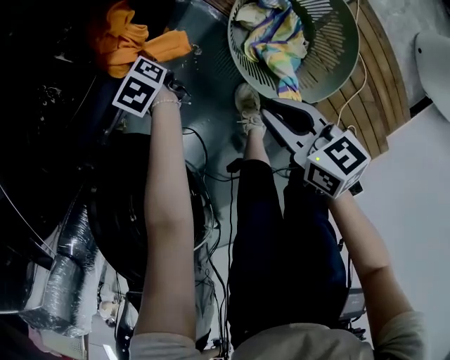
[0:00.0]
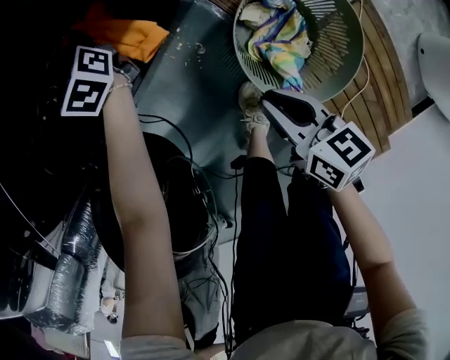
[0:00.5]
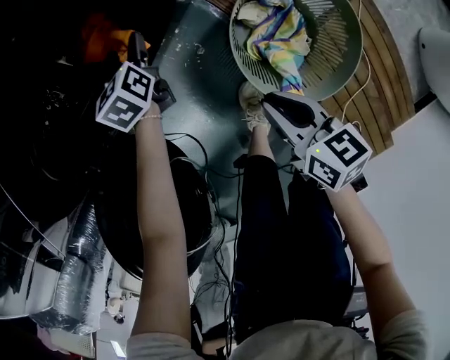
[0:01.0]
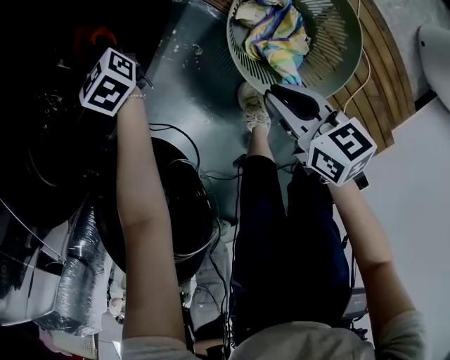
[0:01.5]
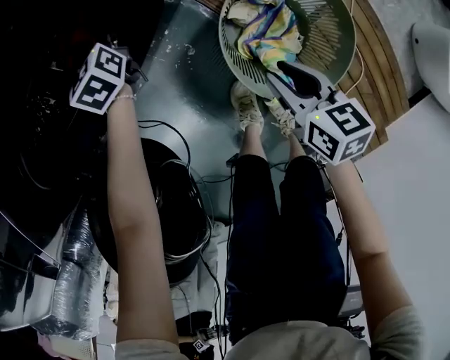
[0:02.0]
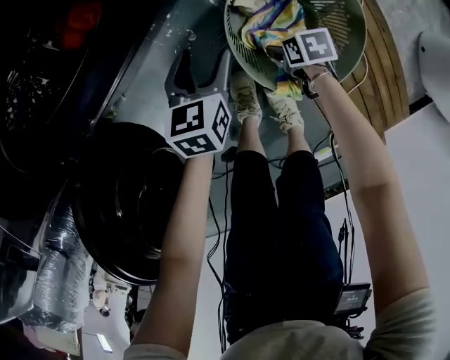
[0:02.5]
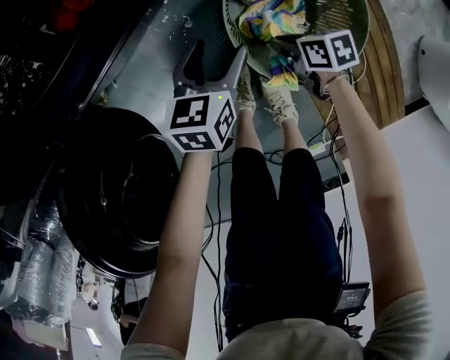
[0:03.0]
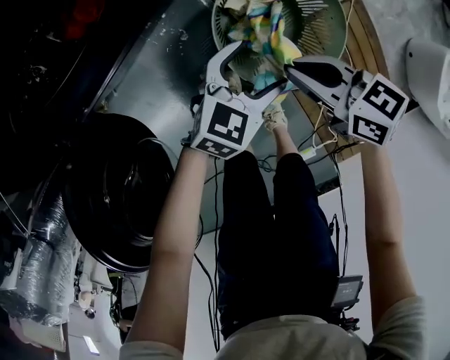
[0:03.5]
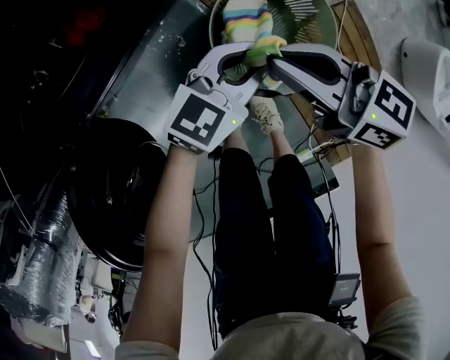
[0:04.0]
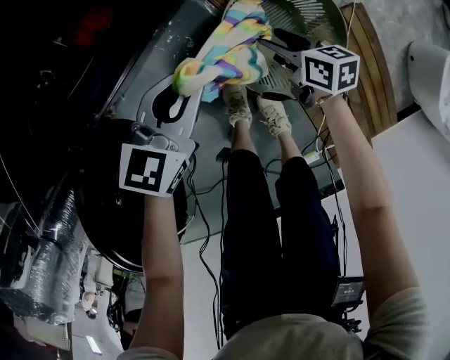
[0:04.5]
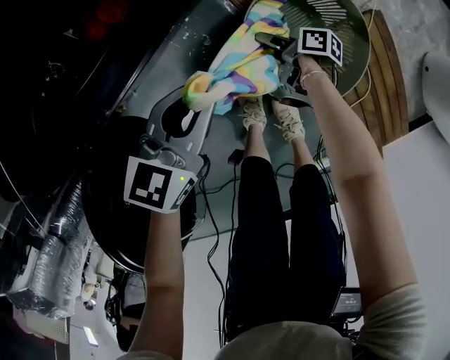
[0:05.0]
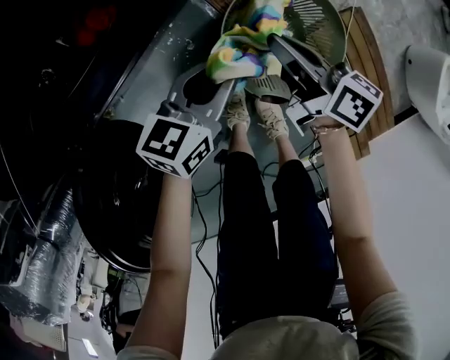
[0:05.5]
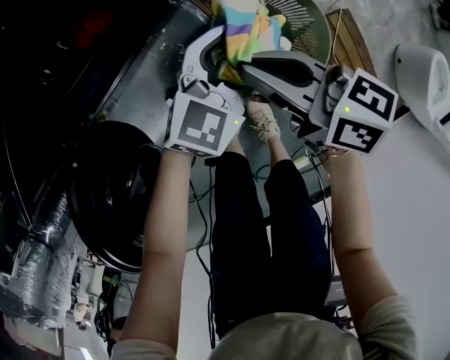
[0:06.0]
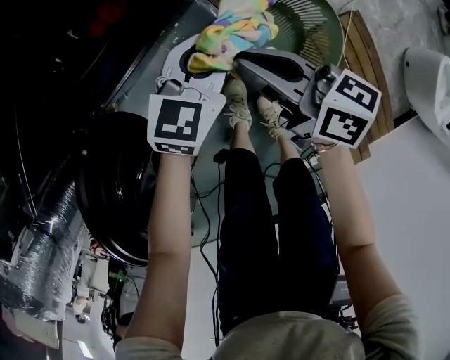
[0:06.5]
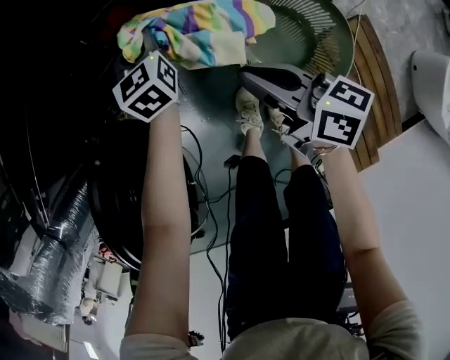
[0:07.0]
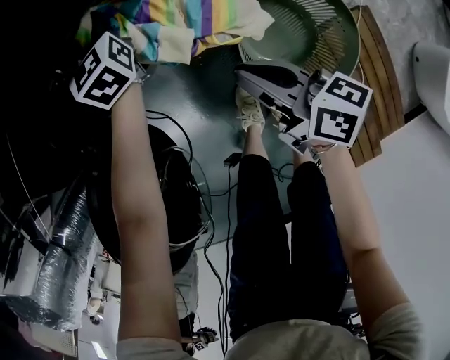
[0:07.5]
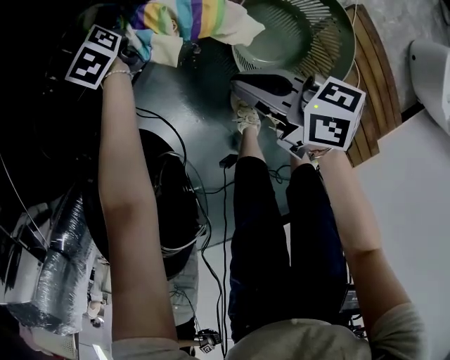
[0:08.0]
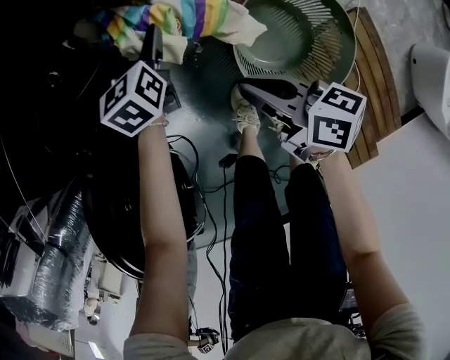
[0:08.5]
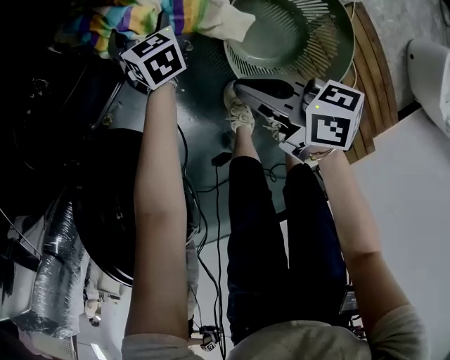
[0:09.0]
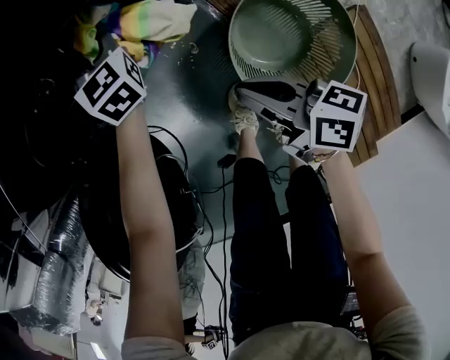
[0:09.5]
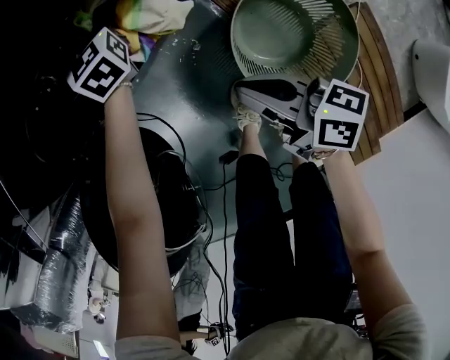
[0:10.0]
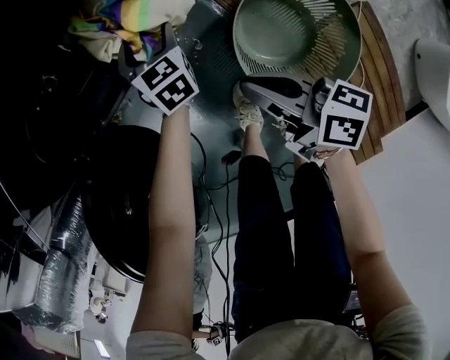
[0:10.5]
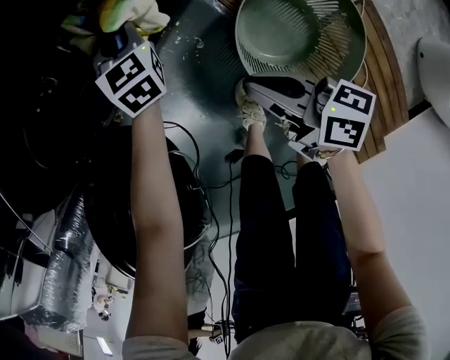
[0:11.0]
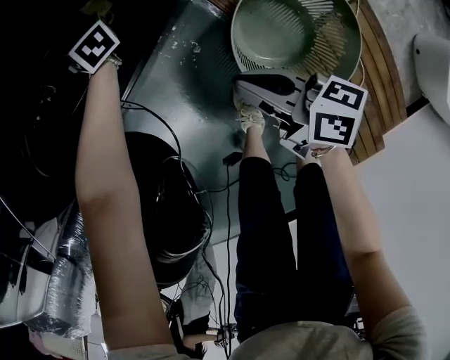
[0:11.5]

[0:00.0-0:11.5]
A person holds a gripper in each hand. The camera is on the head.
0:00.0 to 0:02.0: The left gripper is displaced forward, upward and to the right by approximately 15 cm, changes its angle by about 30 degrees, and opens; the right gripper goes approximately 5 cm to the right.
0:02.0 to 0:04.0: The left gripper ends up approximately 40 cm from where it was, turns by approximately 70 degrees, and closes up, while the right gripper goes approximately 15 cm upward, rotates approximately 40 degrees, and opens, then closes once more.
0:04.0 to 0:06.0: The left gripper opens up; the right gripper moves roughly 35 cm downward and comes back, and opens, then closes once more.
0:06.0 to 0:07.5: The left gripper ends up roughly 35 cm from where it was, turns by about 60 degrees, and closes its fingers. Meanwhile the right gripper is displaced downward by roughly 10 cm.
0:07.5 to 0:09.5: The left gripper reaches about 15 cm downward, then returns, and opens and closes again.
0:09.5 to 0:11.5: The left gripper moves forward, roughly 10 cm, and opens and closes again.

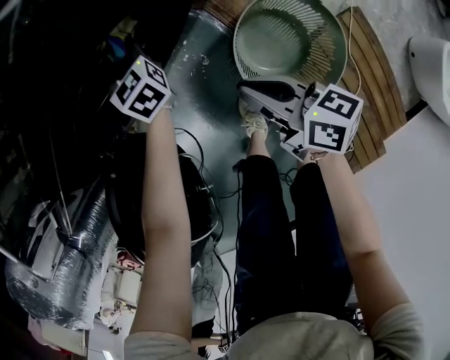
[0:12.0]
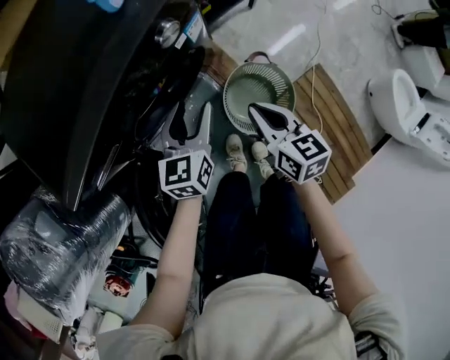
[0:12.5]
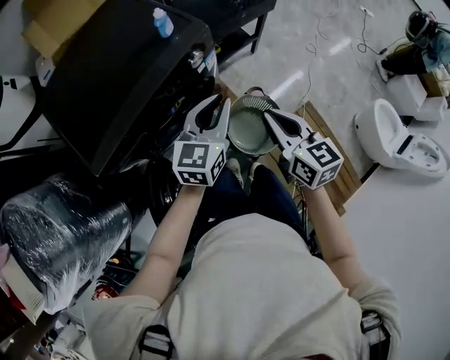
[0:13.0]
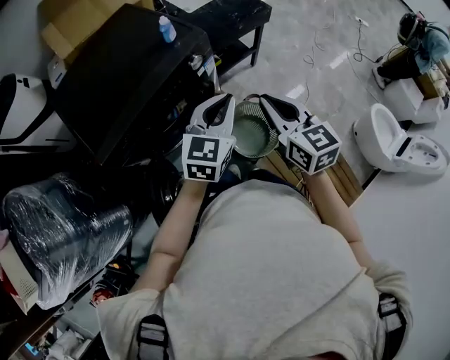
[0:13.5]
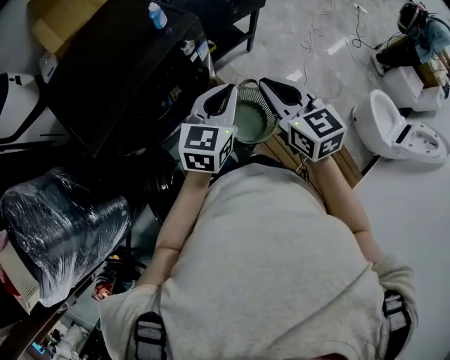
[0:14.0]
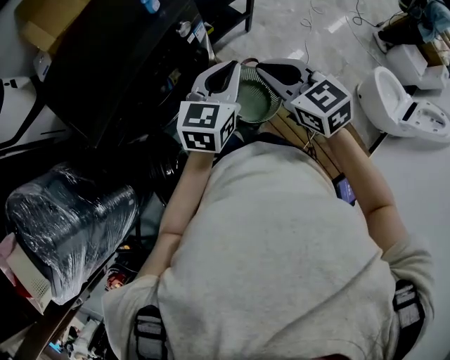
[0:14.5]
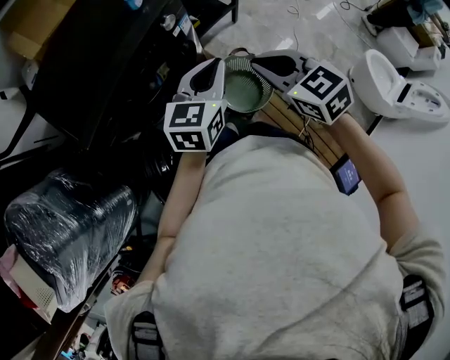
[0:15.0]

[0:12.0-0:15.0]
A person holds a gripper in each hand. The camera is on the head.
0:12.0 to 0:13.5: The grippers both shift upward by about 50 cm. The left gripper rotates roughly 50 degrees, and closes its fingers, while the right gripper rotates around the line of its fingers by roughly 40 degrees, counterclockwise from behind.
0:13.5 to 0:15.0: The right gripper moves approximately 5 cm, and swivels roughly 20 degrees.

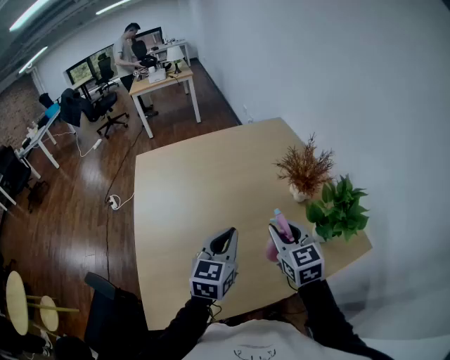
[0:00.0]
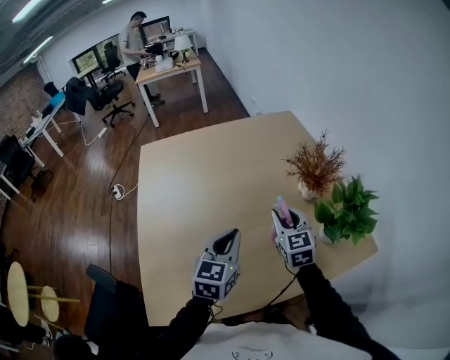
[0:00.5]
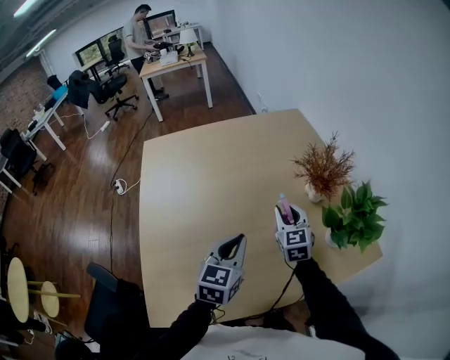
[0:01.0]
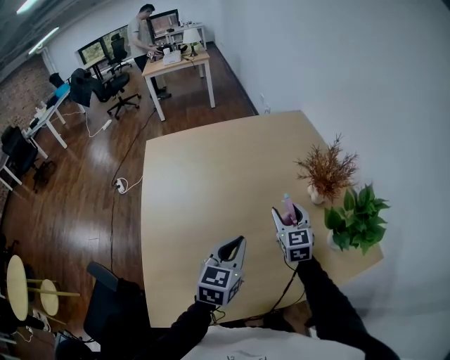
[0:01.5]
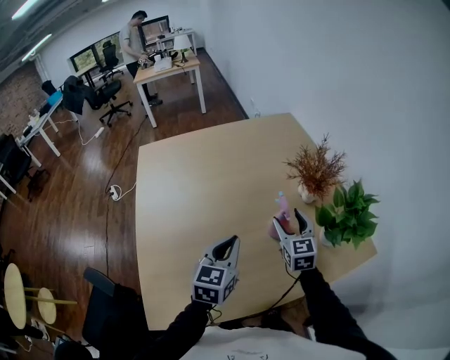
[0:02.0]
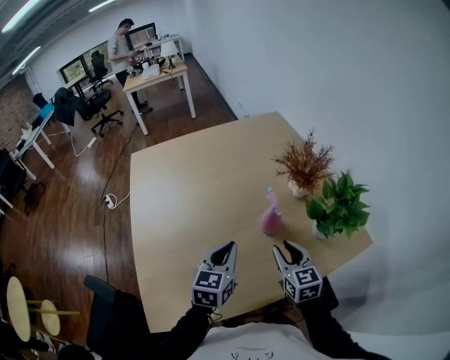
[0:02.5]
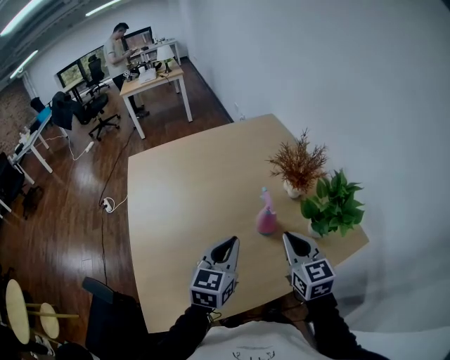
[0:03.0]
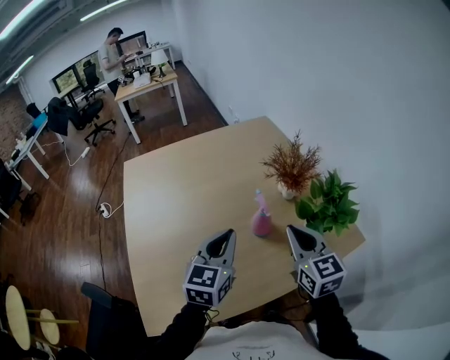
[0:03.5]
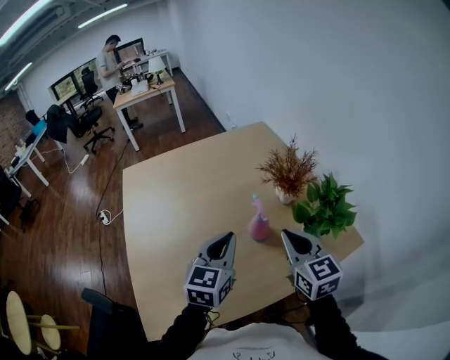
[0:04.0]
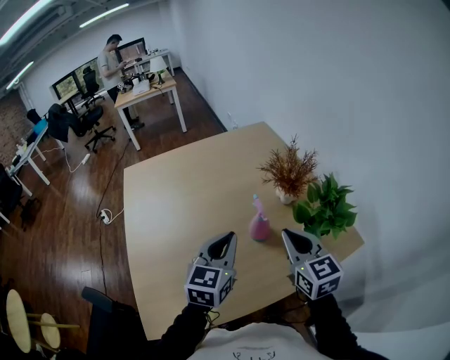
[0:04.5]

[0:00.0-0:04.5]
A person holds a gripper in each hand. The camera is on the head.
0:00.0 to 0:02.0: The right gripper goes approximately 10 cm forward and downward, and opens.
0:02.0 to 0:04.5: The left gripper travels upward and to the right by roughly 10 cm. Meanwhile the right gripper moves backward, upward and to the right, roughly 20 cm, and closes up.

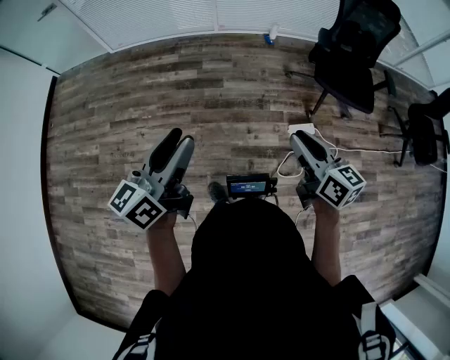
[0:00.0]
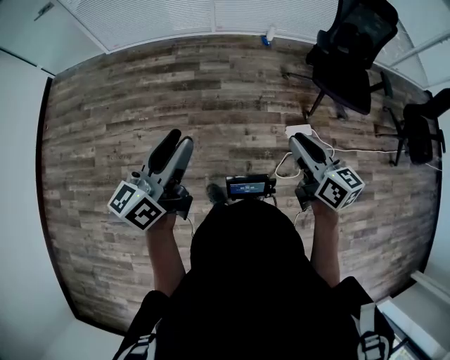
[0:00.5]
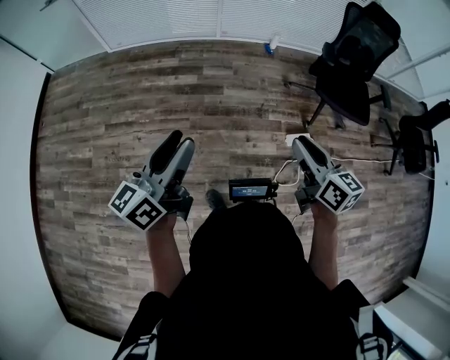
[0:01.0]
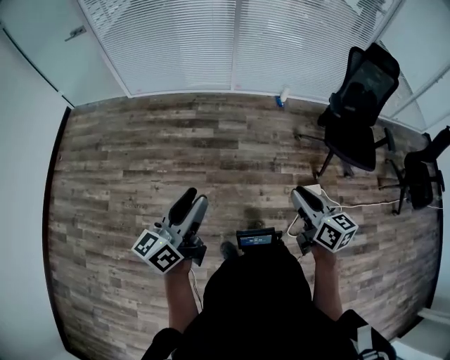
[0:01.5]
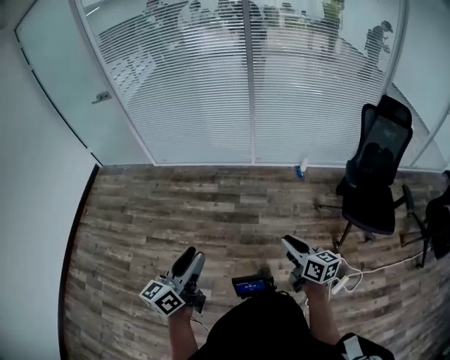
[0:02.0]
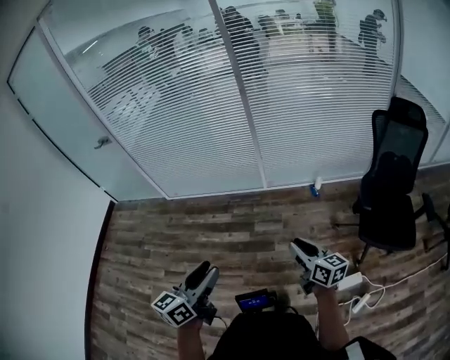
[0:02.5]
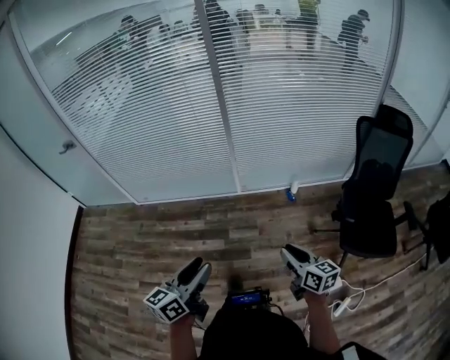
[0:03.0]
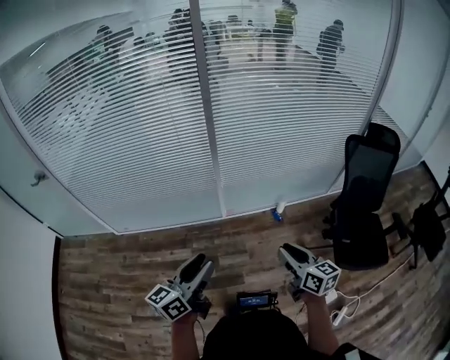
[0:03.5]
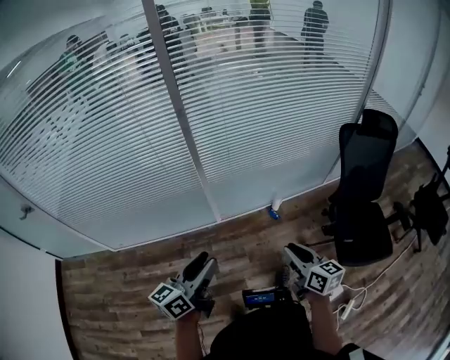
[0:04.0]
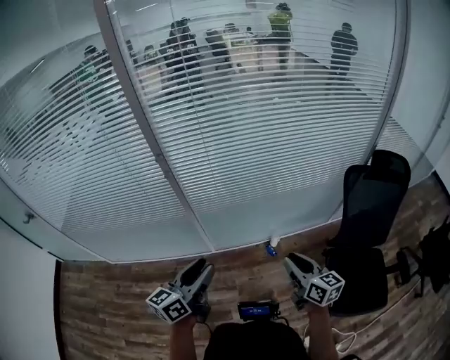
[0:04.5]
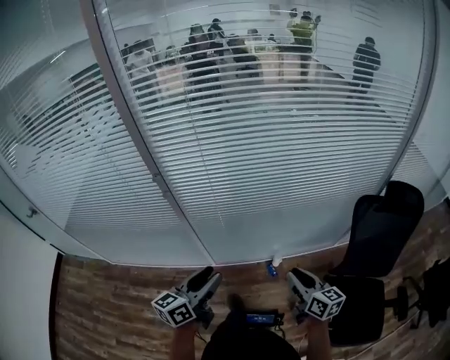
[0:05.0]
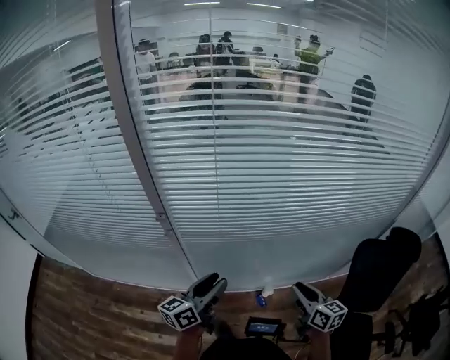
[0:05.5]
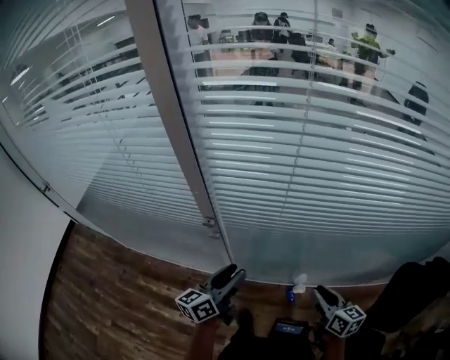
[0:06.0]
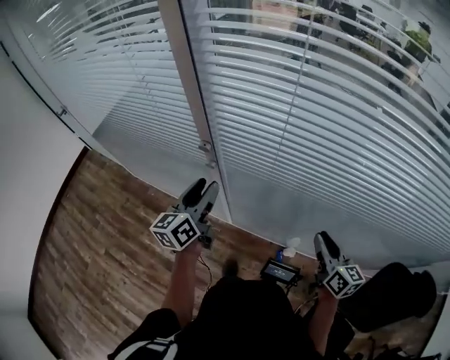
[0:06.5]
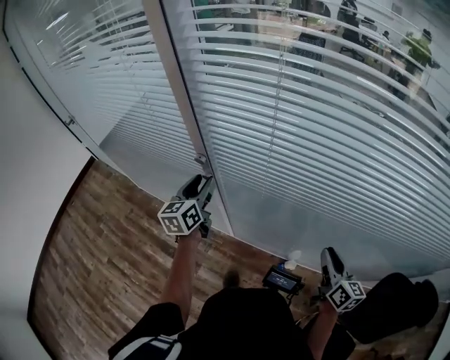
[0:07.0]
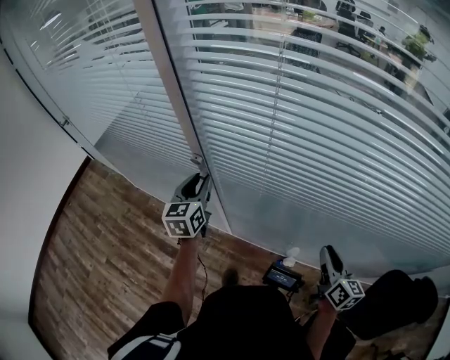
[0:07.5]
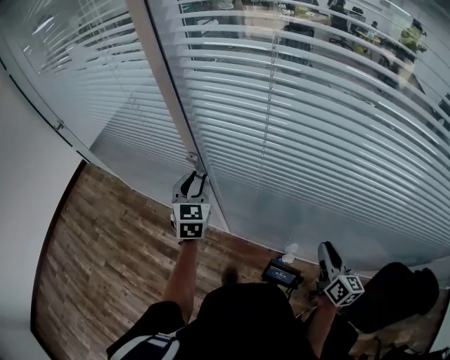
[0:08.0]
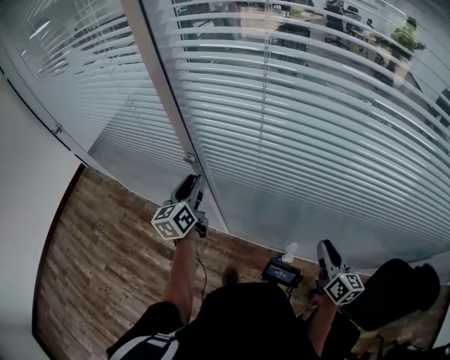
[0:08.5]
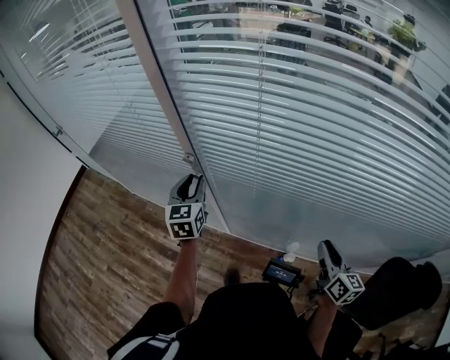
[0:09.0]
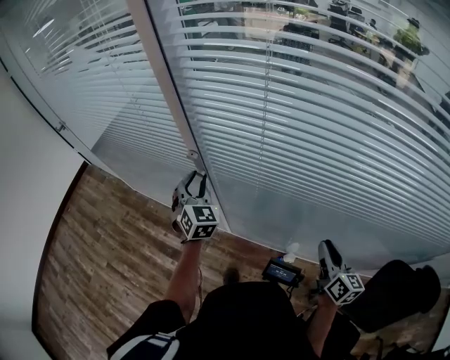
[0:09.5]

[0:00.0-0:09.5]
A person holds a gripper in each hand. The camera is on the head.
0:00.0 to 0:02.0: The right gripper moves forward and to the left, about 20 cm. Meanwhile the left gripper shifts about 15 cm to the left and forward.
0:02.0 to 0:04.0: The pair of grippers is taken forward, roughly 50 cm. The right gripper swivels approximately 20 degrees, while the left gripper rotates roughly 30 degrees.
0:04.0 to 0:05.5: Both grippers travel together forward and to the right, some 30 cm.
0:05.5 to 0:07.5: The left gripper moves up and down over roughly 10 cm, changing direction 2 times, and turns by roughly 60 degrees. The right gripper goes up and down, some 10 cm each way, reversing 2 times.
0:07.5 to 0:09.5: The left gripper rotates about 40 degrees.
